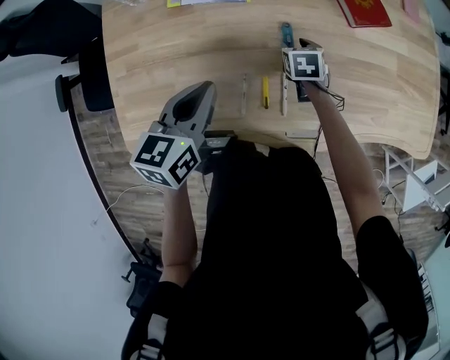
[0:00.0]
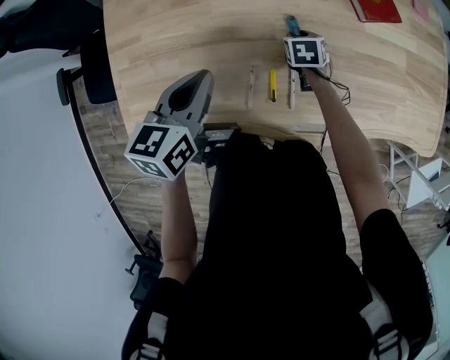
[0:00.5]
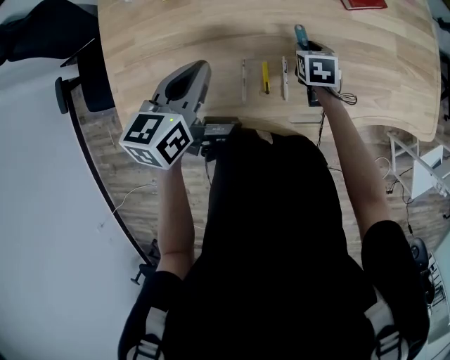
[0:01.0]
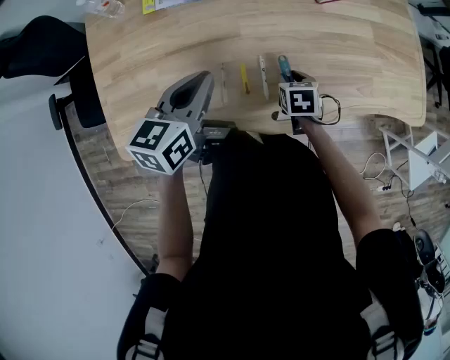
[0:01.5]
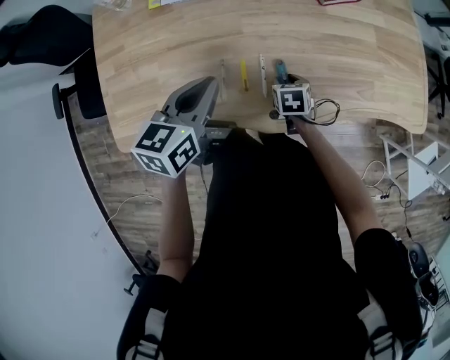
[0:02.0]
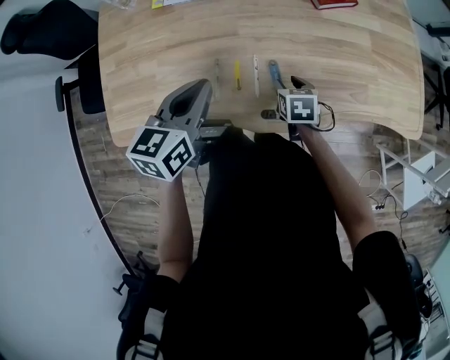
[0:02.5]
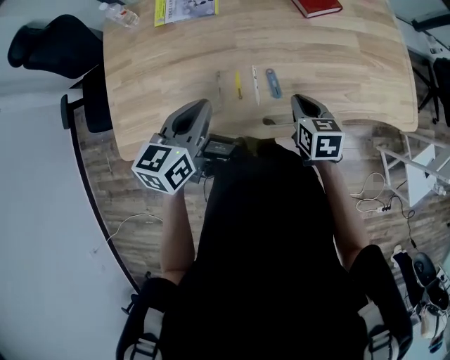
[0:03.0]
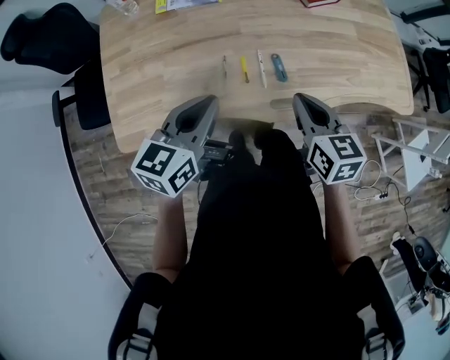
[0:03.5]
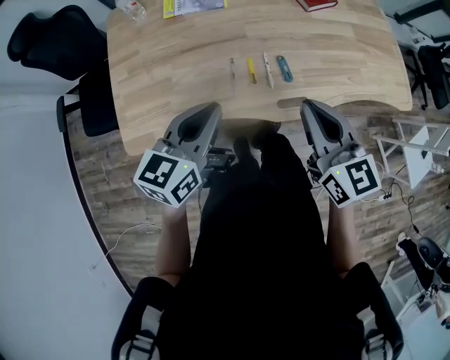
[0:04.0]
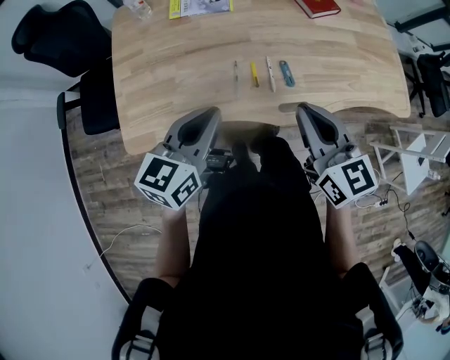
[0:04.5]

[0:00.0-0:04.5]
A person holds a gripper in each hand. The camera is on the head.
0:00.0 to 0:02.0: The right gripper travels backward and to the right by some 20 cm. Meanwhile the left gripper shifts approximately 10 cm to the right and backward.
0:02.0 to 0:04.5: The left gripper travels backward and upward by approximately 20 cm. Meanwhile the right gripper heads upward and backward, covering some 40 cm, angles its fingers upward, by roughly 50 degrees, and closes.

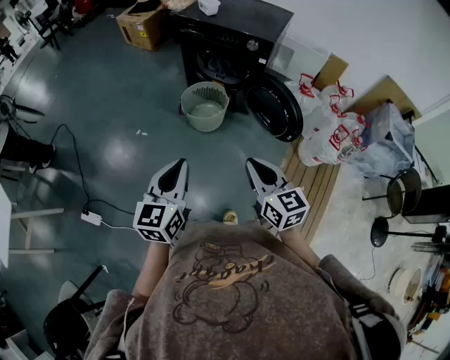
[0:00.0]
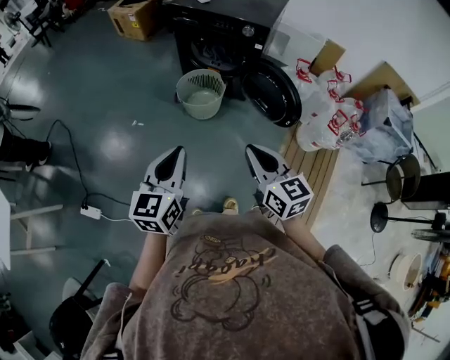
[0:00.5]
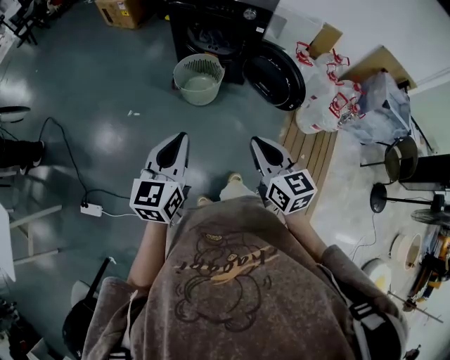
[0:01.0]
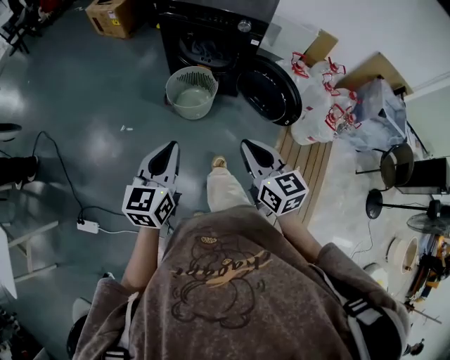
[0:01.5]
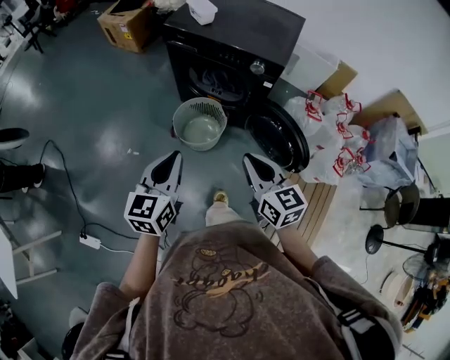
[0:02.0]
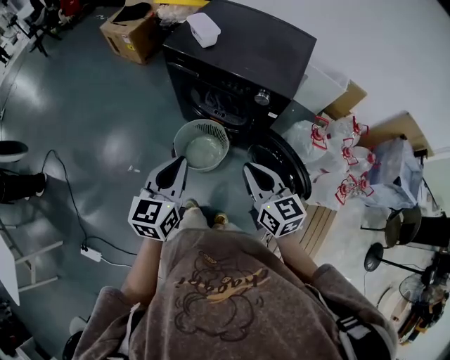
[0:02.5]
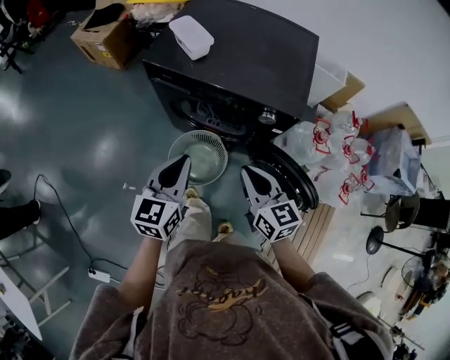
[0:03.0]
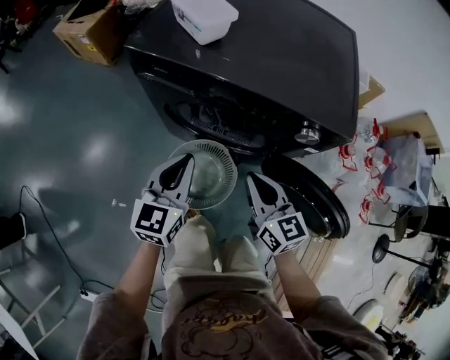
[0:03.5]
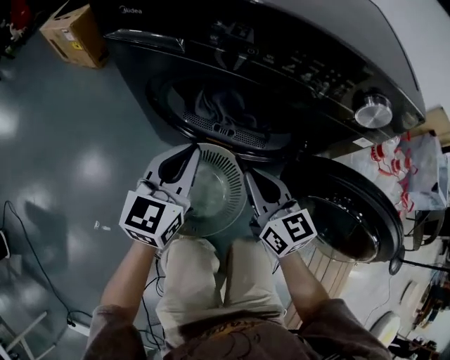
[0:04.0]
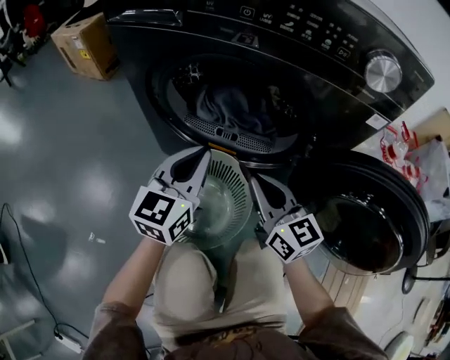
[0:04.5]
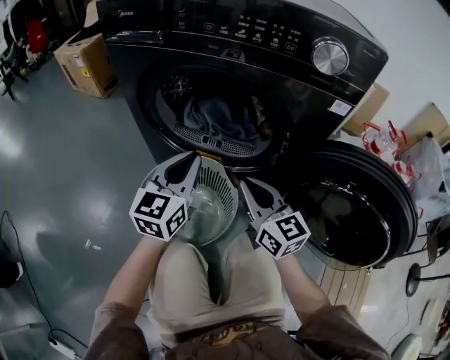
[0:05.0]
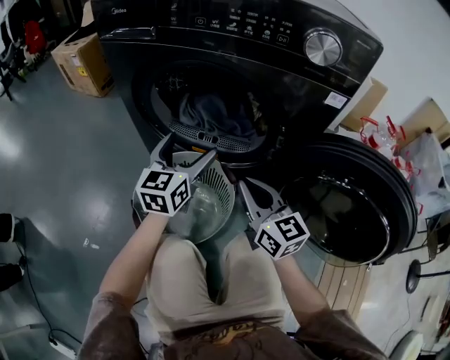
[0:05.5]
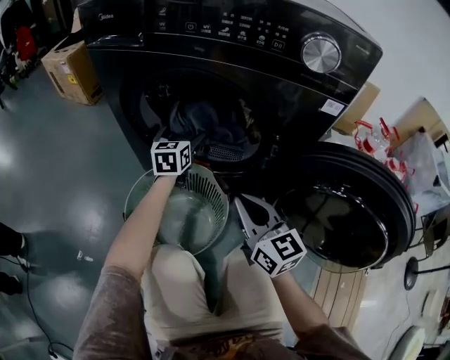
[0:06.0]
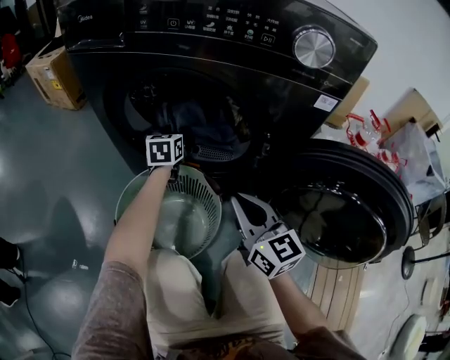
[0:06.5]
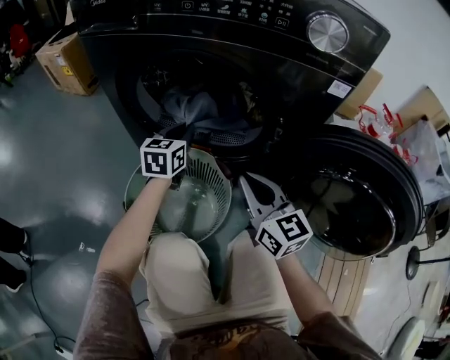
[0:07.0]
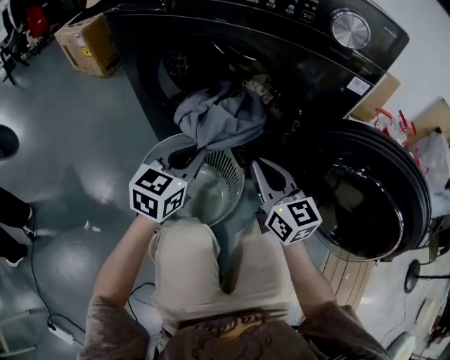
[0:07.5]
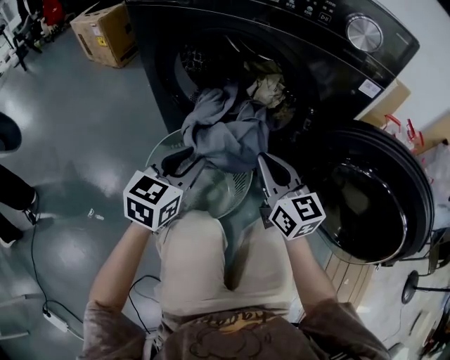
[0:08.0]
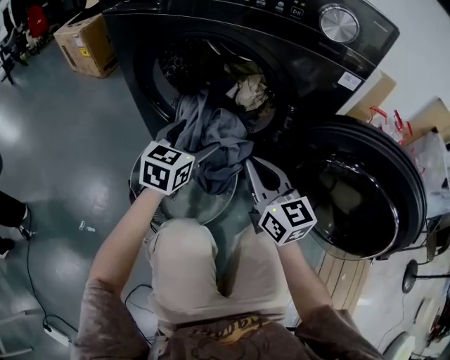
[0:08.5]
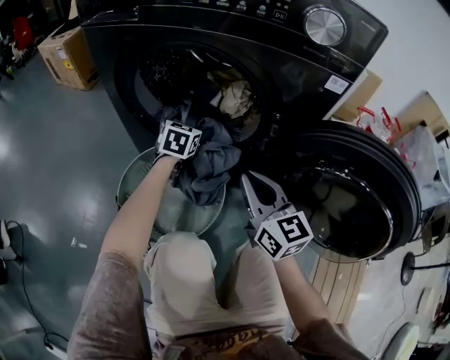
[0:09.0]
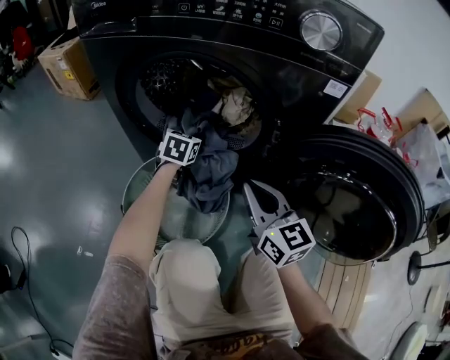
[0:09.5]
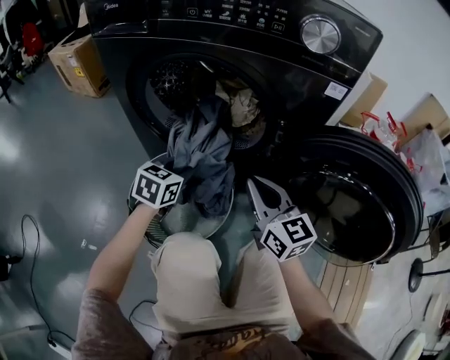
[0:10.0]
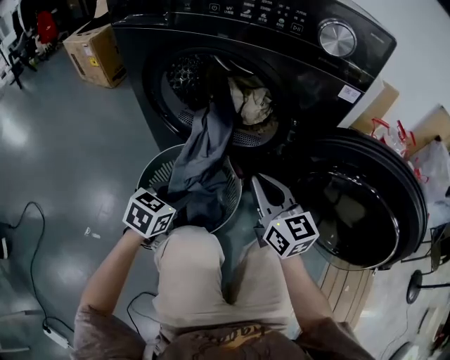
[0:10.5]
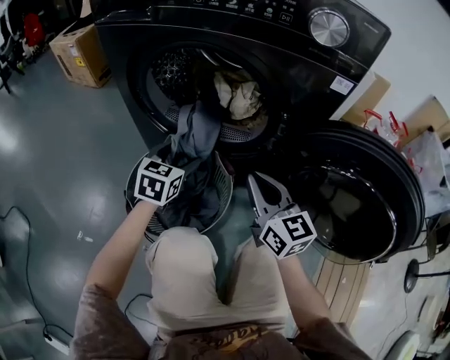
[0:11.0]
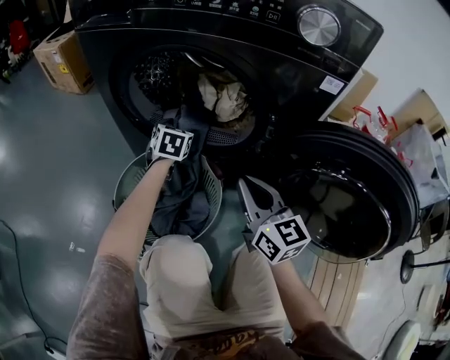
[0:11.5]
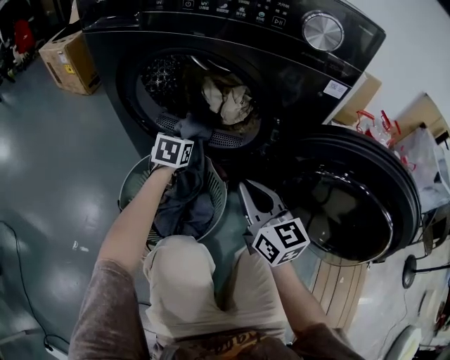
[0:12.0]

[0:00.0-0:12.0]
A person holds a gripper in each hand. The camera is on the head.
0:00.0 to 0:02.0: Both grippers travel together forward, roughly 30 cm.
0:02.0 to 0:04.0: The right gripper goes approximately 50 cm downward and forward, while the left gripper heads forward and downward, covering some 60 cm.
0:04.0 to 0:06.0: The right gripper is displaced downward, backward and to the right by some 10 cm; the left gripper moves downward and forward, about 25 cm, and opens its fingers.
0:06.0 to 0:08.0: The left gripper shifts some 25 cm backward, and closes its fingers.
0:08.0 to 0:10.0: The left gripper heads downward and forward, covering approximately 10 cm, and opens, then closes once more.
0:10.0 to 0:12.0: The left gripper moves forward, about 10 cm, and opens, then closes again.

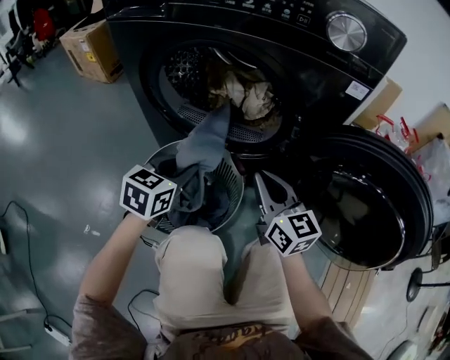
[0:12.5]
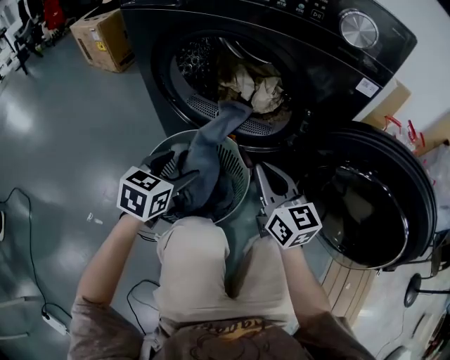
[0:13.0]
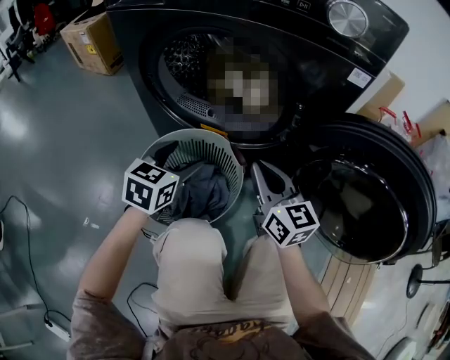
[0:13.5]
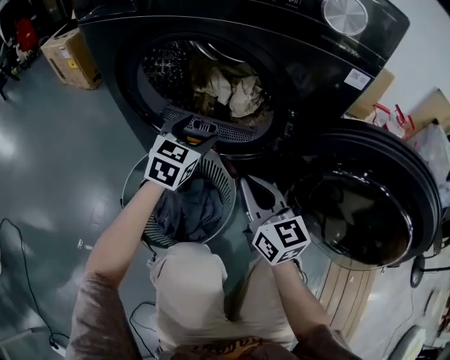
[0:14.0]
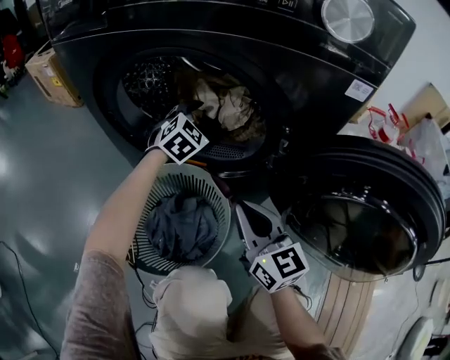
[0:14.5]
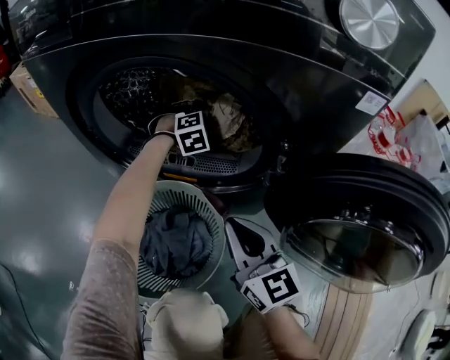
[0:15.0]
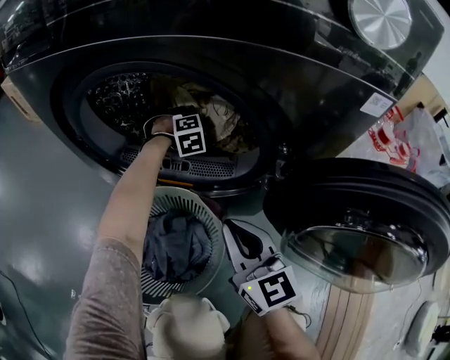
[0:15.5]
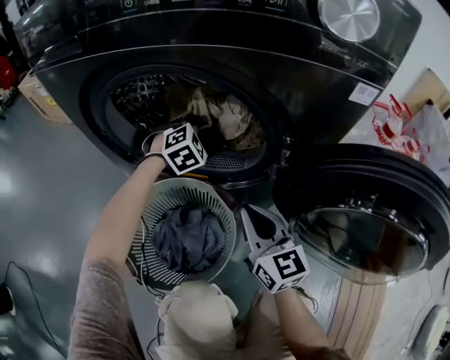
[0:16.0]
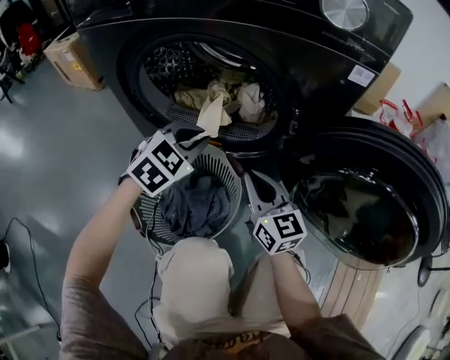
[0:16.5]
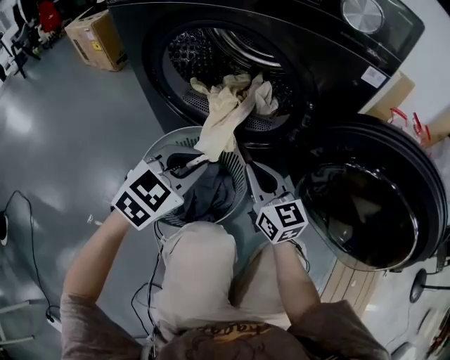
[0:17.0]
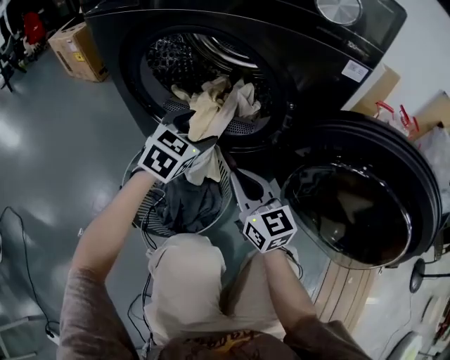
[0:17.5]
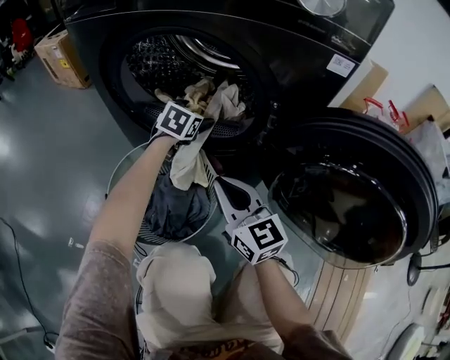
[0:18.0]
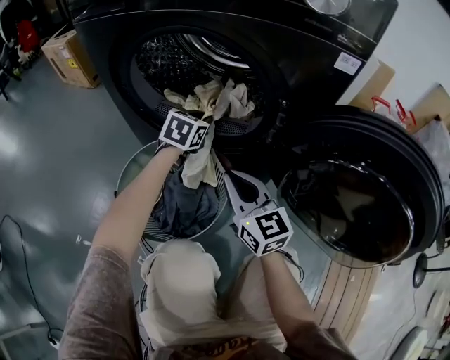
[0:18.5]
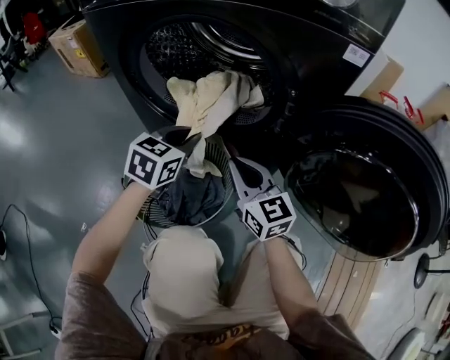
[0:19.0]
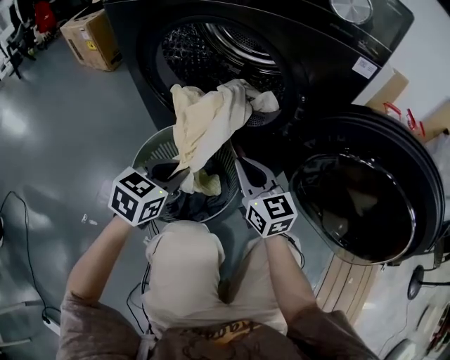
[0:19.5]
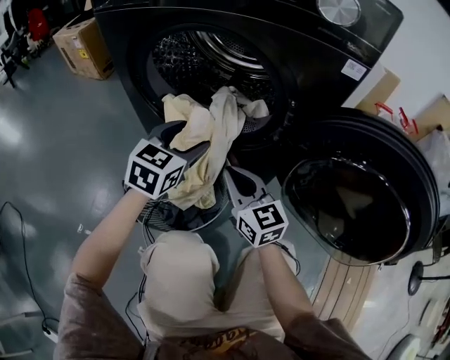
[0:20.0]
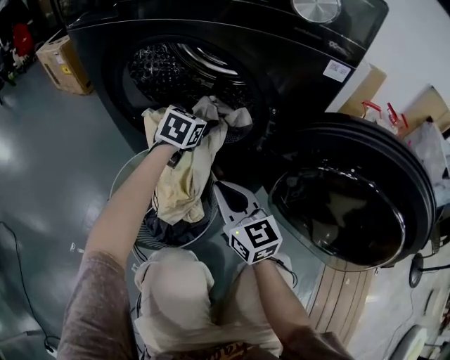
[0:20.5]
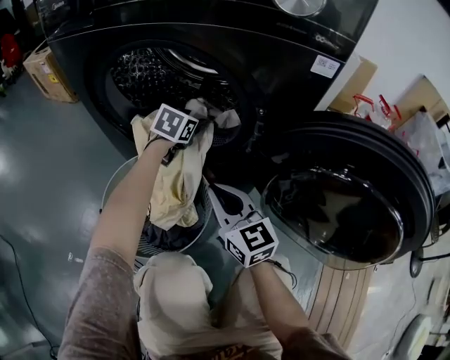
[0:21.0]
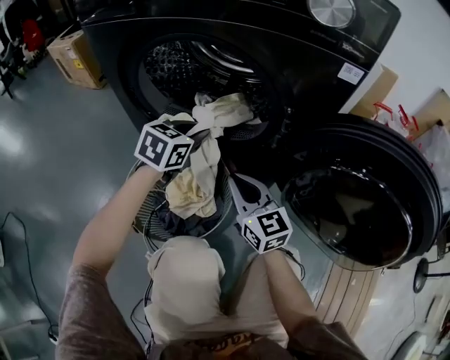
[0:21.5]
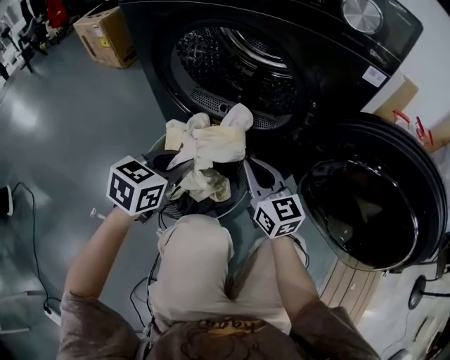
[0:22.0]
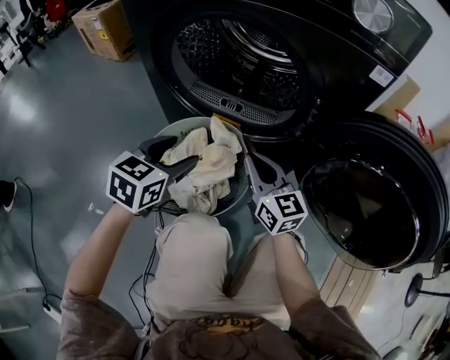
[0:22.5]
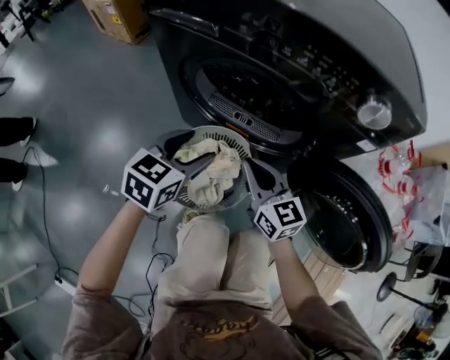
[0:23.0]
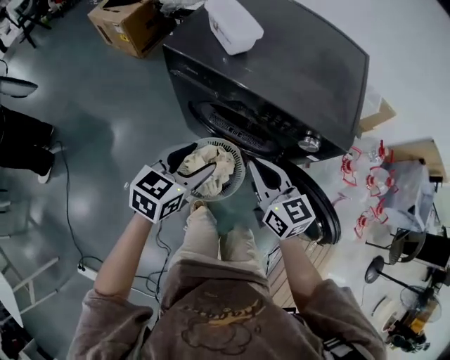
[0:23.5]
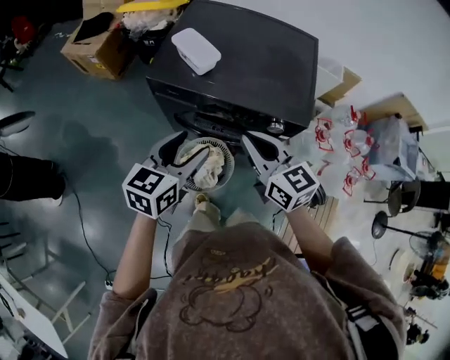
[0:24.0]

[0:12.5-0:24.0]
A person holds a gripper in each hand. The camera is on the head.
0:12.5 to 0:14.5: The left gripper travels forward and to the right by about 25 cm, rolls clockwise, seen from behind, by some 40 degrees, and opens its fingers.
0:14.5 to 0:16.5: The left gripper travels backward by about 15 cm, and closes.
0:16.5 to 0:18.5: The left gripper moves forward and downward, some 15 cm, swivels approximately 30 degrees, and opens and closes again.
0:18.5 to 0:20.0: The left gripper heads backward and upward, covering some 15 cm, and opens its fingers.
0:20.0 to 0:22.0: The left gripper moves to the left, roughly 5 cm, reaches about 15 cm forward, then returns, and closes its fingers.
0:22.0 to 0:24.0: The two grippers go approximately 60 cm upward. The left gripper opens.
